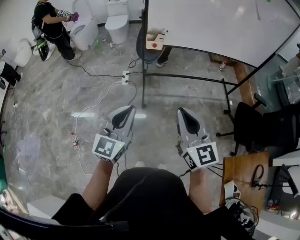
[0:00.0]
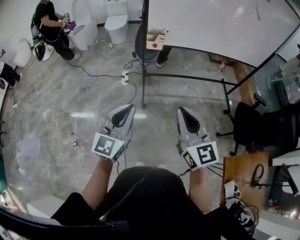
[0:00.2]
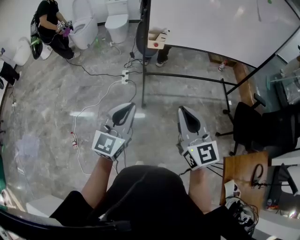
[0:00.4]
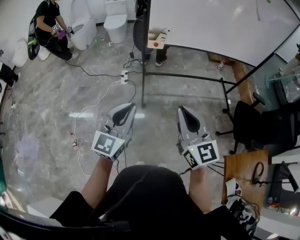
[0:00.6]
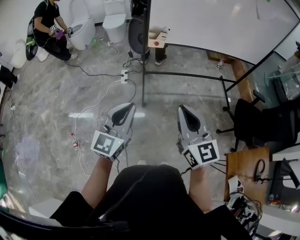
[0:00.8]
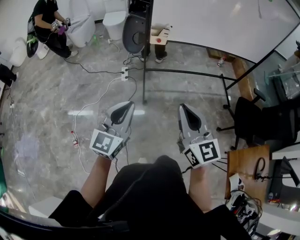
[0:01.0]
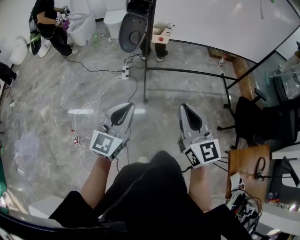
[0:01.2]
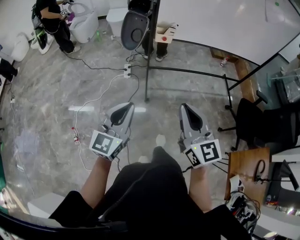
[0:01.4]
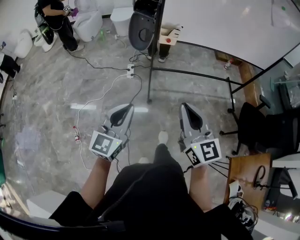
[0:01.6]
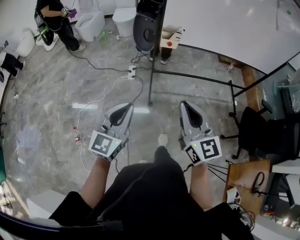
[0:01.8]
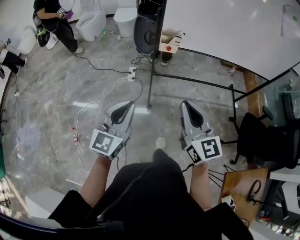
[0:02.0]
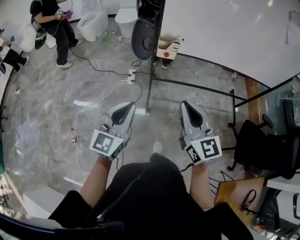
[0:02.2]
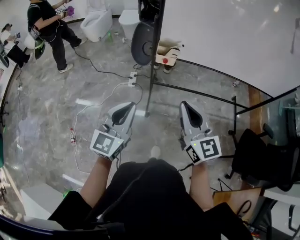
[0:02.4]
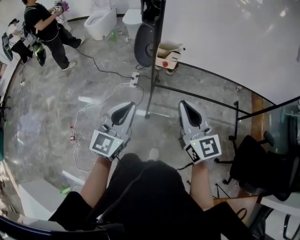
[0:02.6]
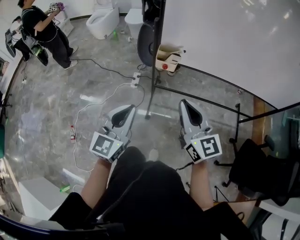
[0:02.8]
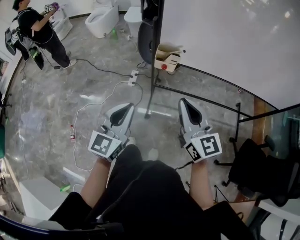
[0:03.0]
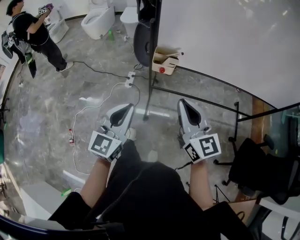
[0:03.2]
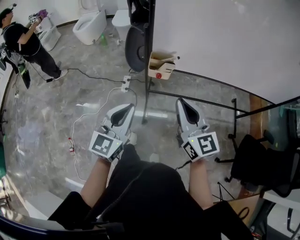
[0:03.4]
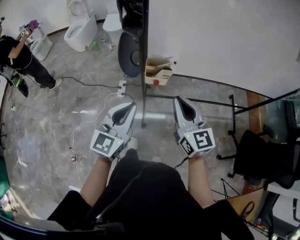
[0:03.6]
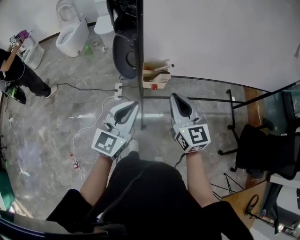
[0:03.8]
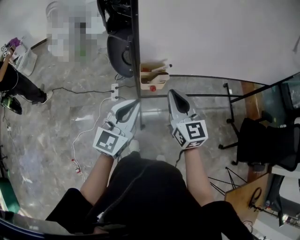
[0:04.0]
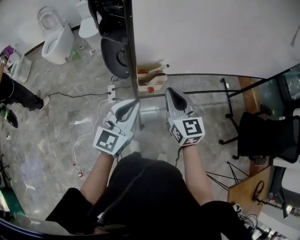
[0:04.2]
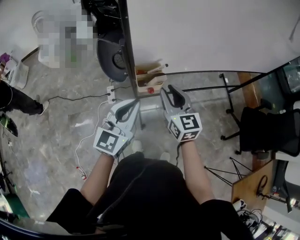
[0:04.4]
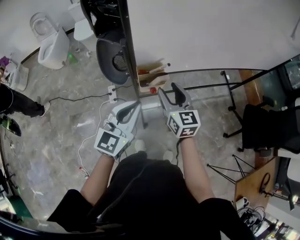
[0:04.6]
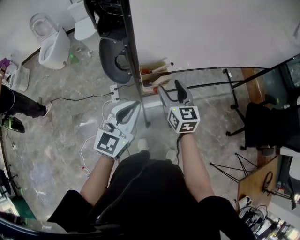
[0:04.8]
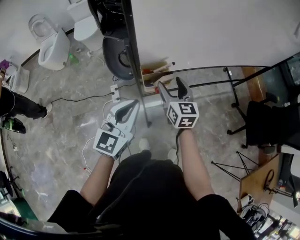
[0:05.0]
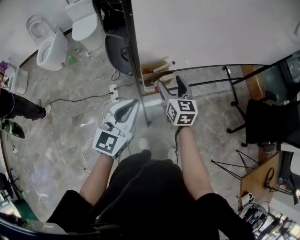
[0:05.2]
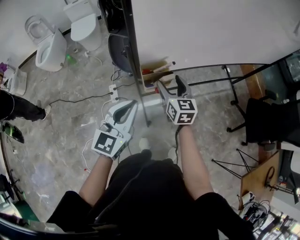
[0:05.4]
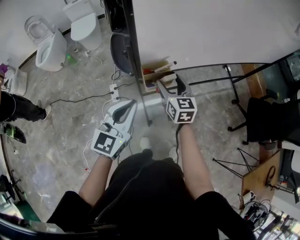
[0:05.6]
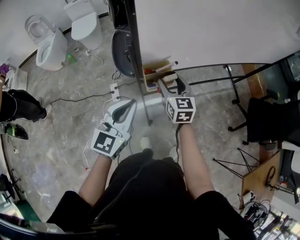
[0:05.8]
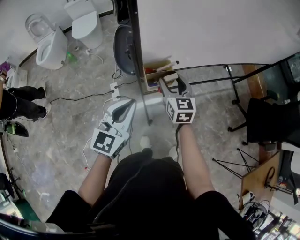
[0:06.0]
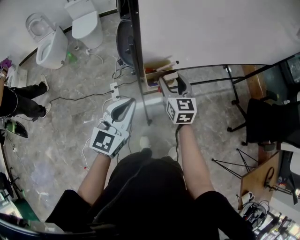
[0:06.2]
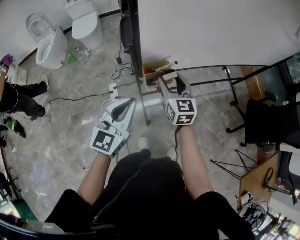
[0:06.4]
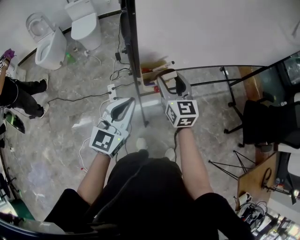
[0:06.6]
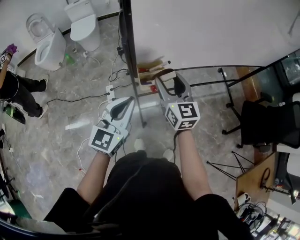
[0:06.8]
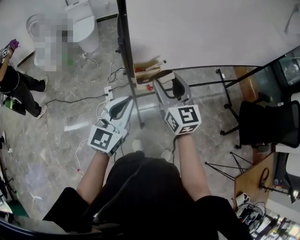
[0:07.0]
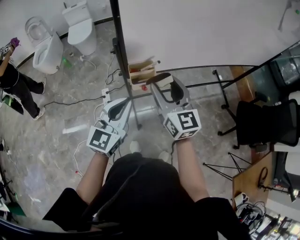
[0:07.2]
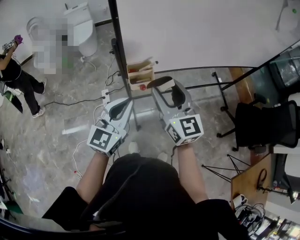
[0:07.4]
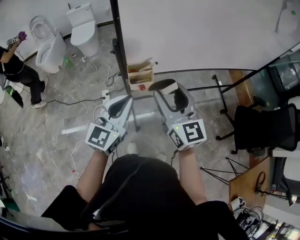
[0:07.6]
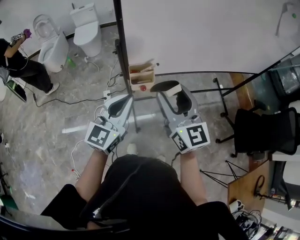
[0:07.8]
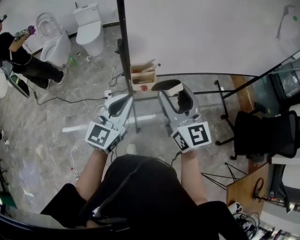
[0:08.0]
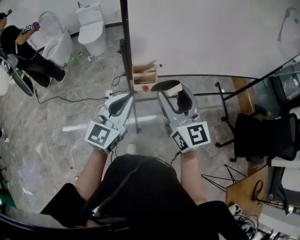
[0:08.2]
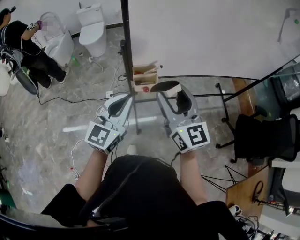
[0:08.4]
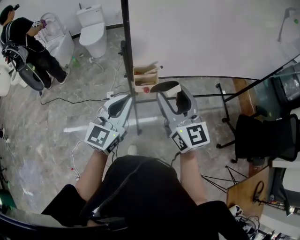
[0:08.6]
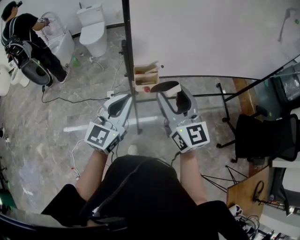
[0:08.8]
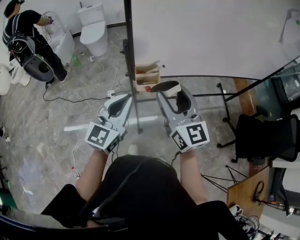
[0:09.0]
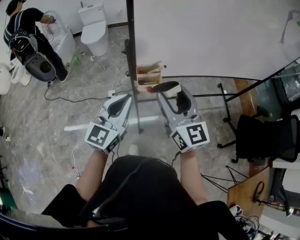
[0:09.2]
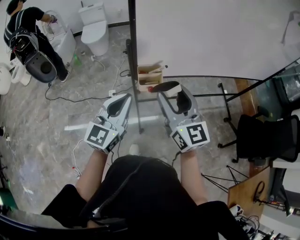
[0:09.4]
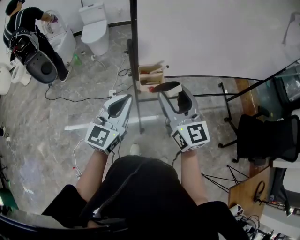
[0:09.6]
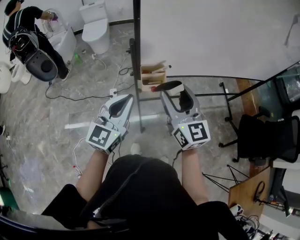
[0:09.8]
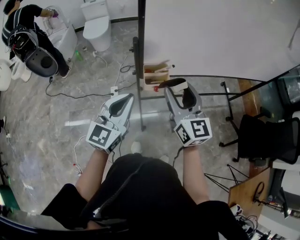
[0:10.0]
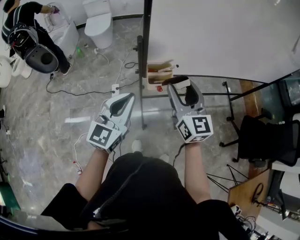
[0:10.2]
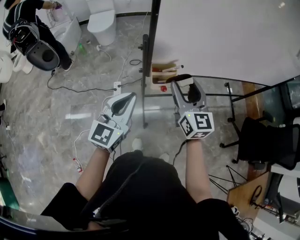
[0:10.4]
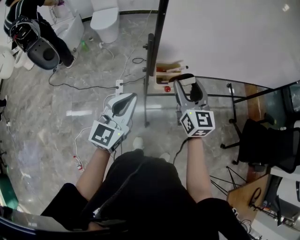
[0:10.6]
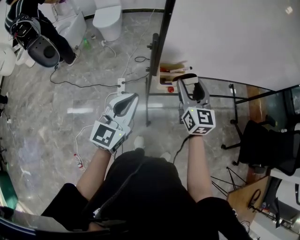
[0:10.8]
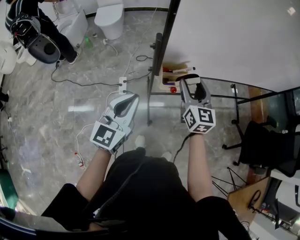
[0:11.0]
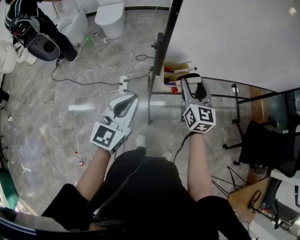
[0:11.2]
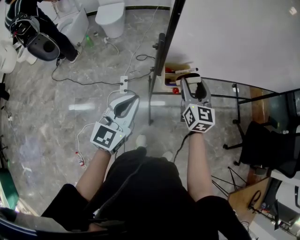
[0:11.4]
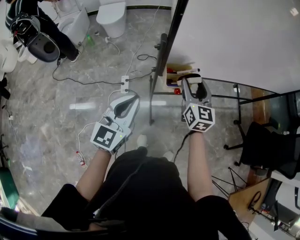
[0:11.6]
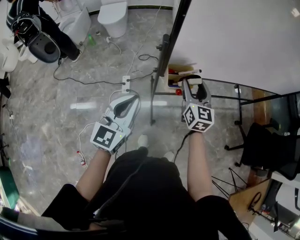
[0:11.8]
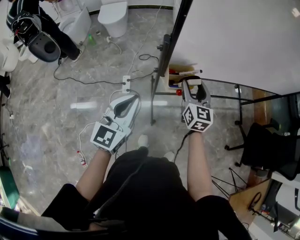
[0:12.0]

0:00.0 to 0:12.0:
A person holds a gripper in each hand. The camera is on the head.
0:00.0 to 0:01.6: The grippers both shift to the left by roughly 5 cm.
0:01.6 to 0:03.0: The left gripper moves forward and to the right, roughly 25 cm. The right gripper is displaced forward by approximately 25 cm.
0:03.0 to 0:04.4: The right gripper shifts by approximately 20 cm, and rotates roughly 30 degrees, while the left gripper ends up approximately 20 cm from where it was, and changes its angle by some 30 degrees.
0:04.4 to 0:06.0: The right gripper moves forward and downward, roughly 10 cm, and opens. Meanwhile the left gripper shifts roughly 5 cm to the left.
0:06.0 to 0:07.6: The right gripper goes about 20 cm upward and backward, and turns by about 20 degrees; the left gripper travels to the right by roughly 5 cm.
0:07.6 to 0:09.0: The grippers stay close to where they were, moving slightly.
0:09.0 to 0:10.4: The left gripper heads to the left, covering roughly 5 cm, while the right gripper heads forward and downward, covering about 10 cm.
0:10.4 to 0:12.0: The right gripper heads downward and forward, covering some 10 cm; the left gripper shifts about 5 cm to the left.

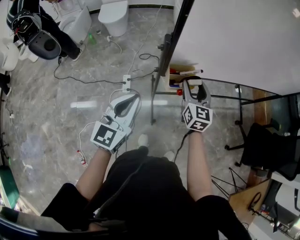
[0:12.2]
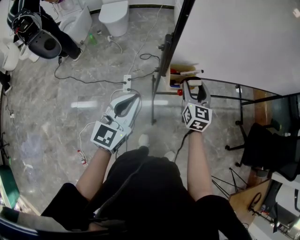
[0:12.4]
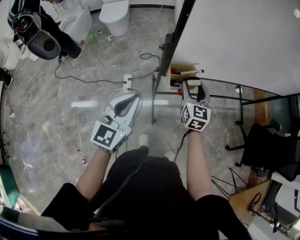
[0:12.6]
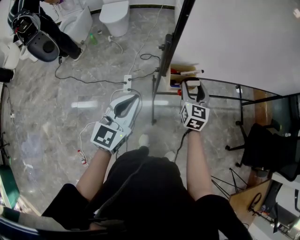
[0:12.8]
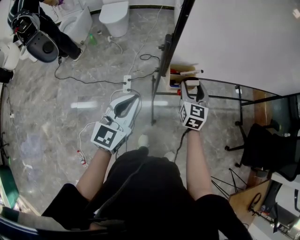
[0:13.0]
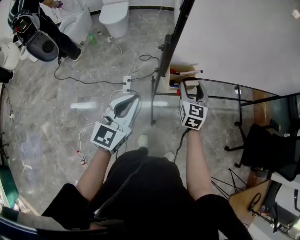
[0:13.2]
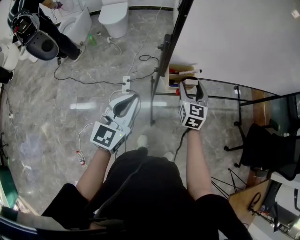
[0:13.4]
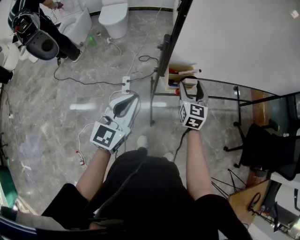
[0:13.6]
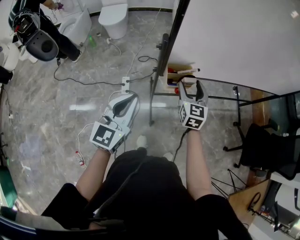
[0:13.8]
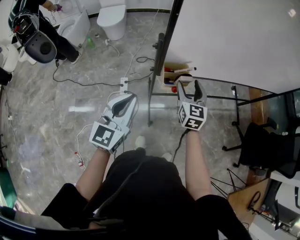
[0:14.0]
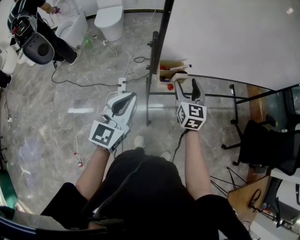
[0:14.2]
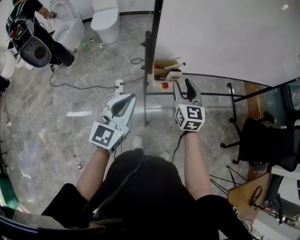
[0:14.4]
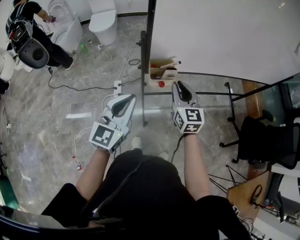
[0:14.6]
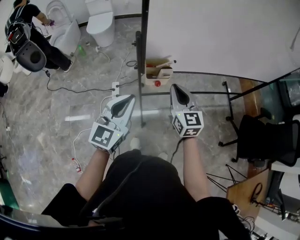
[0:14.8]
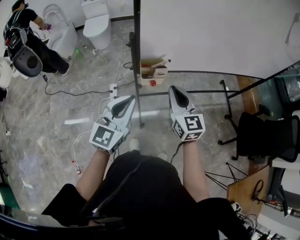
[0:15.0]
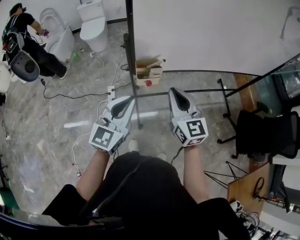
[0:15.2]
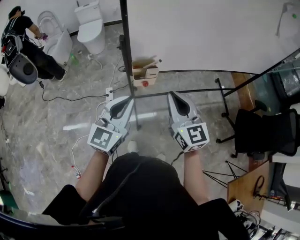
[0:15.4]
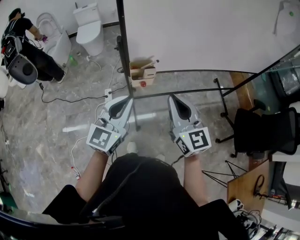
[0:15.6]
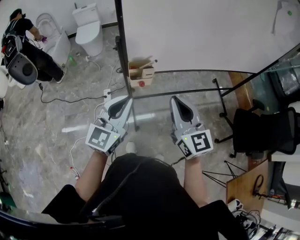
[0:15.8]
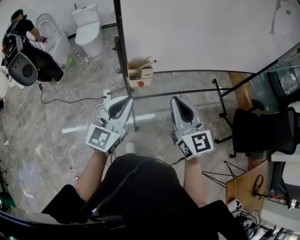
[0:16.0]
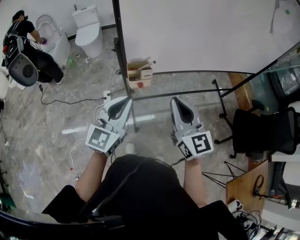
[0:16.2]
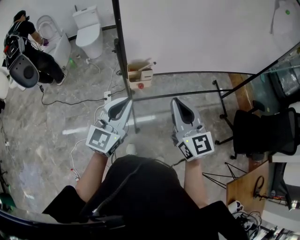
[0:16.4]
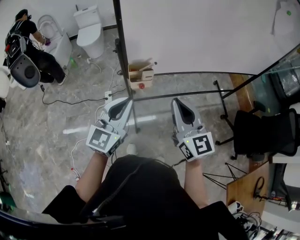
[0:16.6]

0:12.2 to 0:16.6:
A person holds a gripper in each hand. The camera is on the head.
0:12.2 to 0:13.6: There are only small adjustments of the grippers.
0:13.6 to 0:15.2: The right gripper goes roughly 20 cm backward, upward and to the right, swivels roughly 20 degrees, and closes up; the left gripper is displaced to the right by approximately 10 cm.
0:15.2 to 0:16.6: The right gripper heads backward, covering approximately 5 cm.

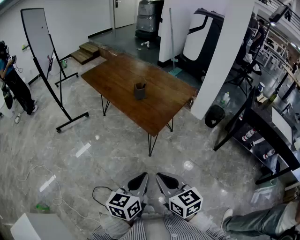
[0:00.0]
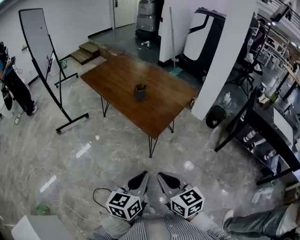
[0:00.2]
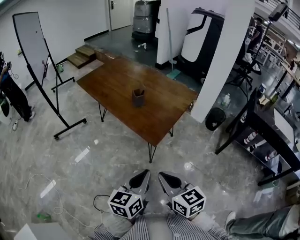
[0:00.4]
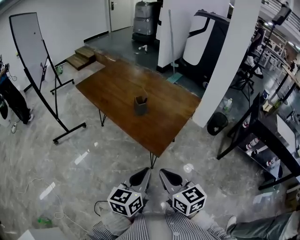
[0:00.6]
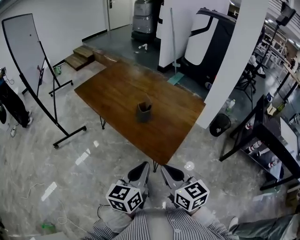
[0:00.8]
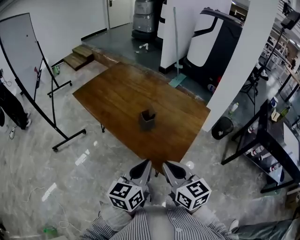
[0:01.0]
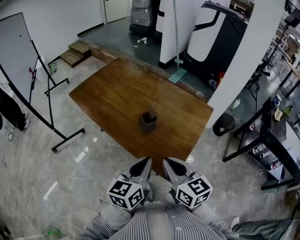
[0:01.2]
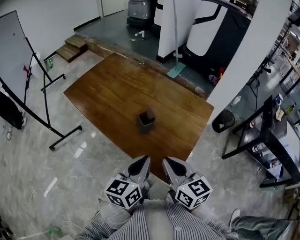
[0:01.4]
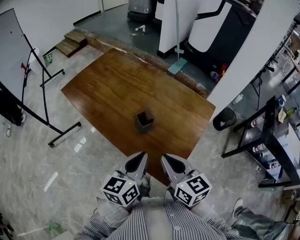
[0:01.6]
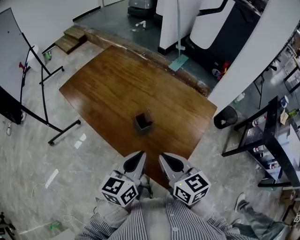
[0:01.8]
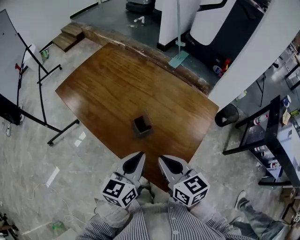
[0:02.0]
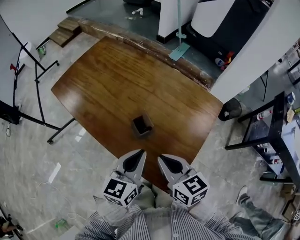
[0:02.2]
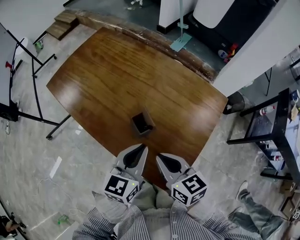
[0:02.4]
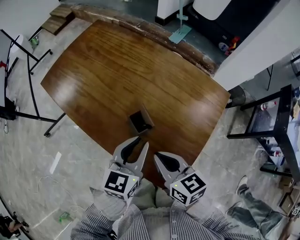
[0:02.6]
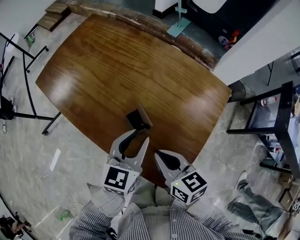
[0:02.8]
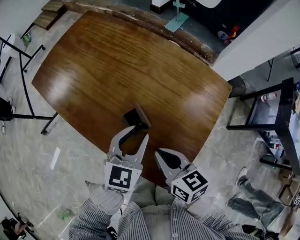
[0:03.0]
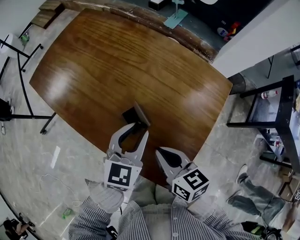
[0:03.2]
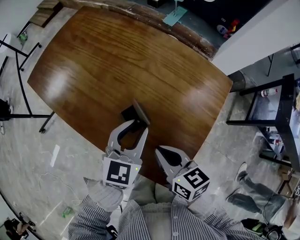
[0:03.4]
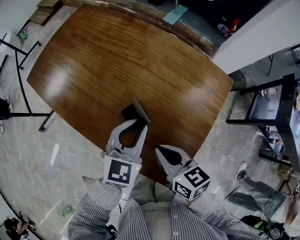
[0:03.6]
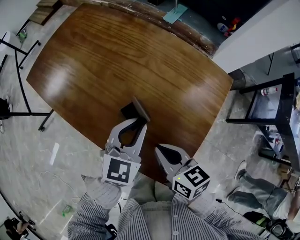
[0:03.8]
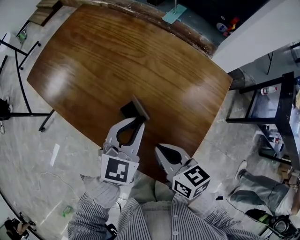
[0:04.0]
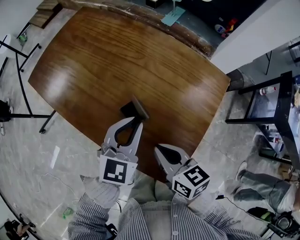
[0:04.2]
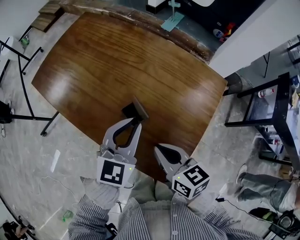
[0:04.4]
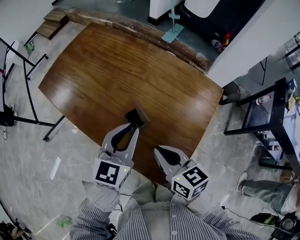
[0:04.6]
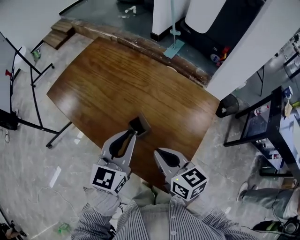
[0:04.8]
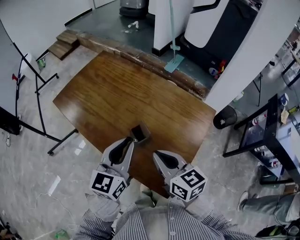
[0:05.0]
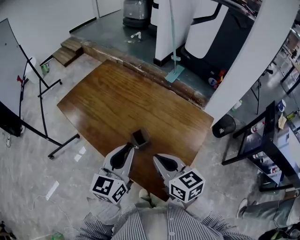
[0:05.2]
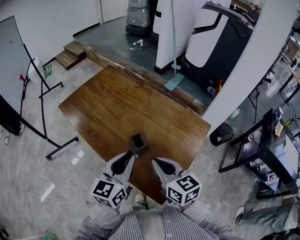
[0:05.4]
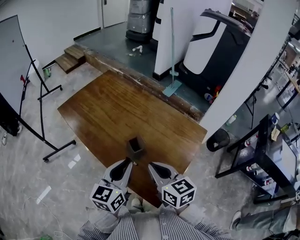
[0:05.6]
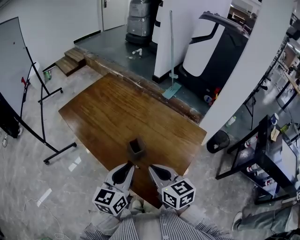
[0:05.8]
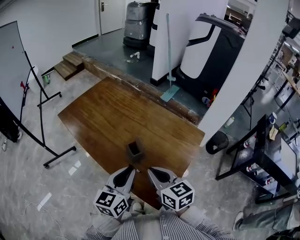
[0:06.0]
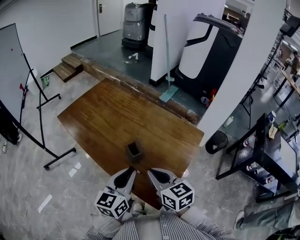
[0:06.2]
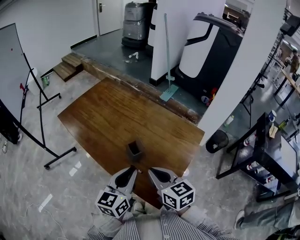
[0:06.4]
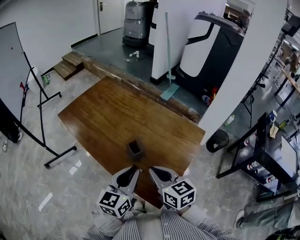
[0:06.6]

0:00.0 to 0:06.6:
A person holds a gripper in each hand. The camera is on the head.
0:00.0 to 0:01.6: The pair of grippers is taken forward, roughly 40 cm.
0:01.6 to 0:03.2: The left gripper shifts some 20 cm forward and downward, swivels approximately 30 degrees, and opens its fingers, while the right gripper shifts about 15 cm downward and forward.
0:03.2 to 0:05.0: The two grippers go about 15 cm upward. The left gripper turns by about 20 degrees.
0:05.0 to 0:06.6: The left gripper moves backward, roughly 10 cm.
